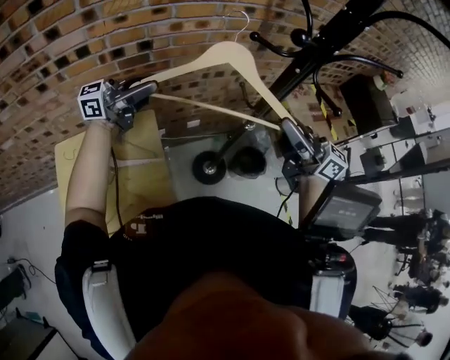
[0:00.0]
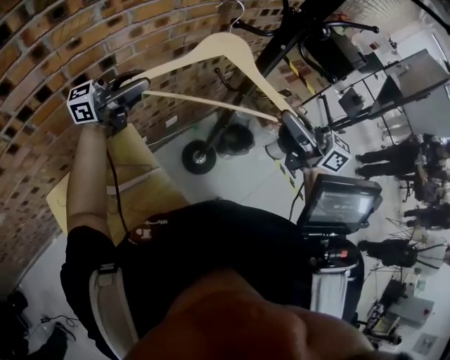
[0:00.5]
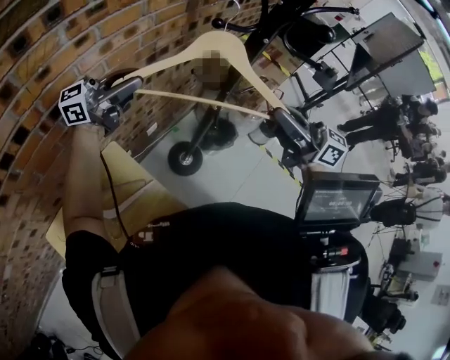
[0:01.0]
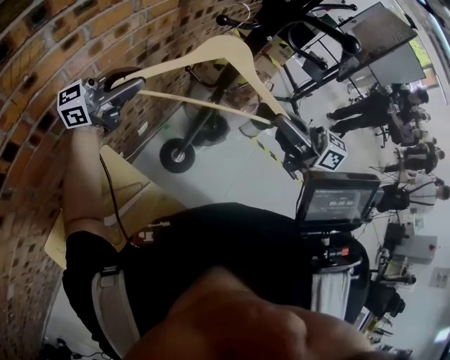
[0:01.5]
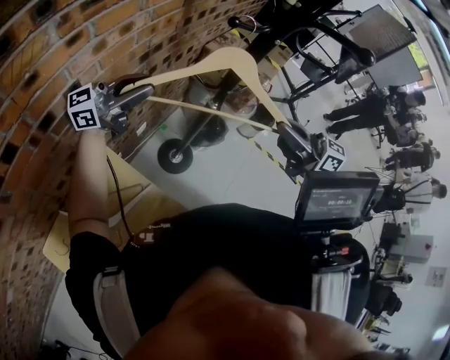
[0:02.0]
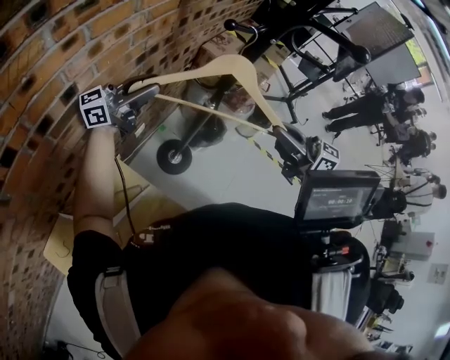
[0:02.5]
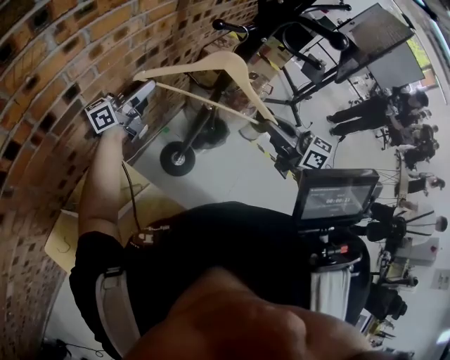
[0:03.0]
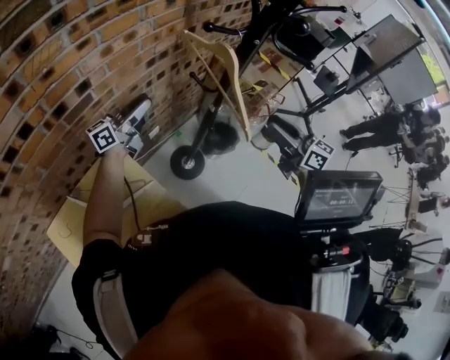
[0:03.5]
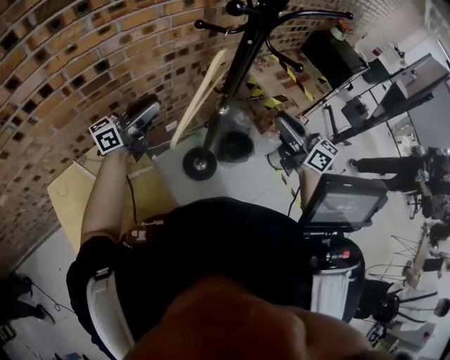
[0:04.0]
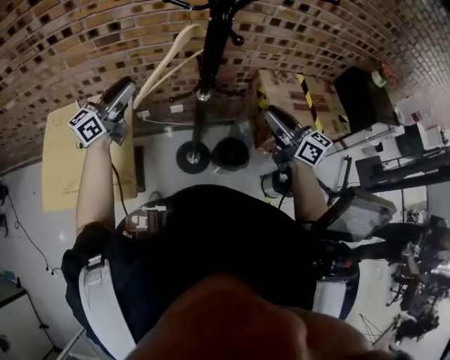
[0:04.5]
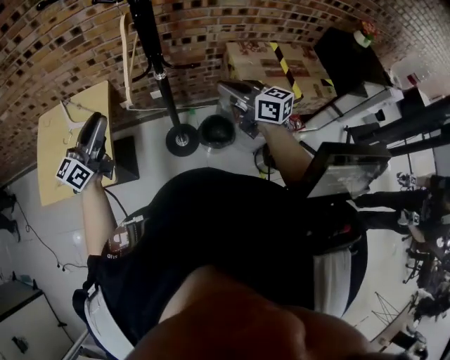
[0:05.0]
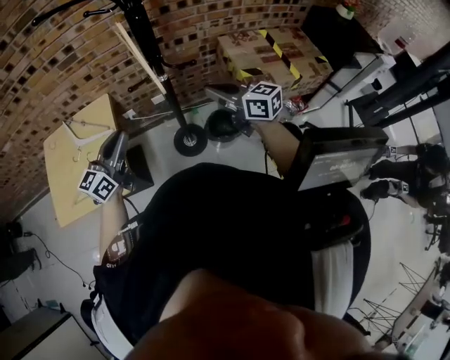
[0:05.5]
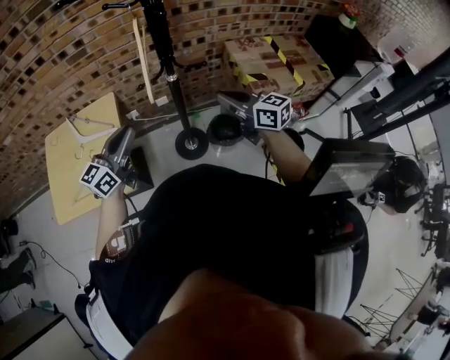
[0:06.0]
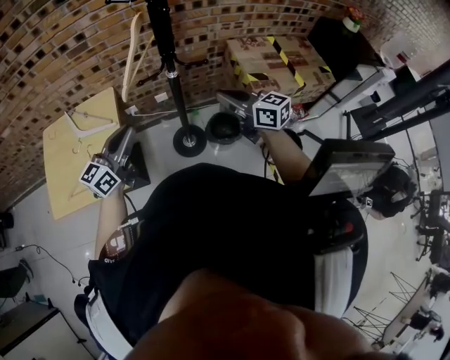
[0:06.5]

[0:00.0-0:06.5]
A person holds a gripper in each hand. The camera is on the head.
0:00.0 to 0:02.0: The right gripper changes place by roughly 5 cm, and rotates some 30 degrees. Meanwhile the left gripper ends up roughly 15 cm from where it was, and turns by approximately 30 degrees.
0:02.0 to 0:04.5: The right gripper ends up approximately 20 cm from where it was, and turns by roughly 30 degrees. The left gripper goes downward and returns, roughly 10 cm each way, and rotates roughly 70 degrees.
0:04.5 to 0:06.5: The right gripper goes about 10 cm backward and to the left, and closes. The left gripper is displaced backward by approximately 20 cm, and closes its fingers.

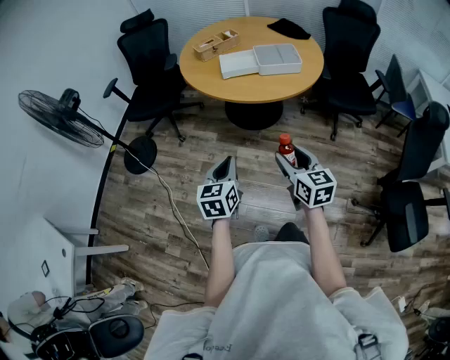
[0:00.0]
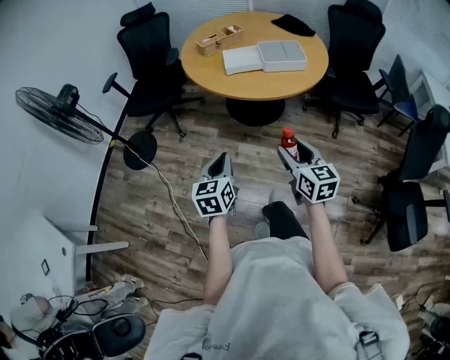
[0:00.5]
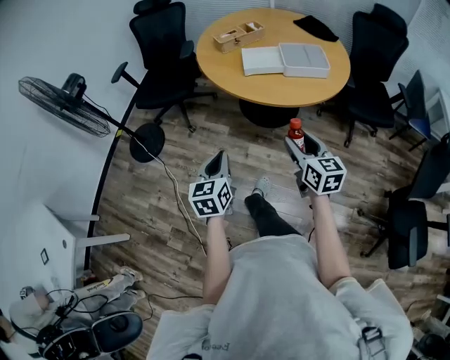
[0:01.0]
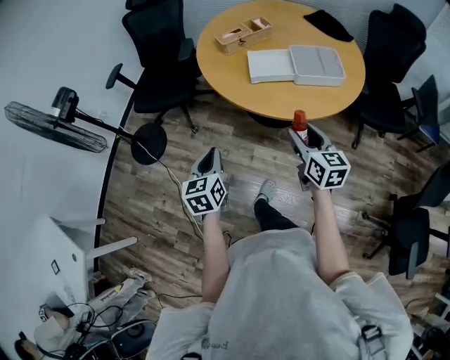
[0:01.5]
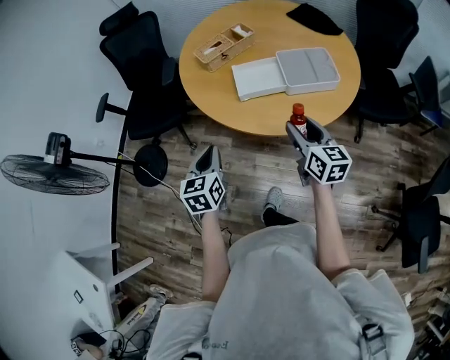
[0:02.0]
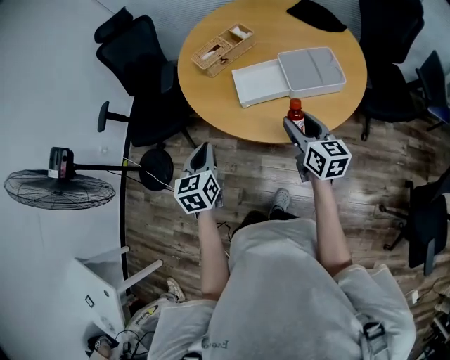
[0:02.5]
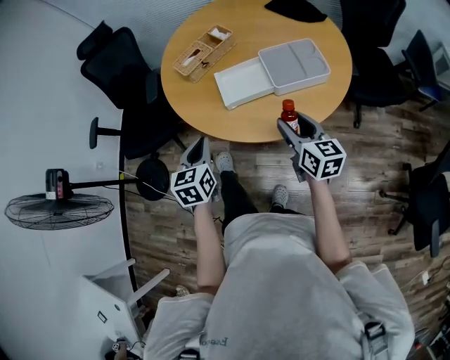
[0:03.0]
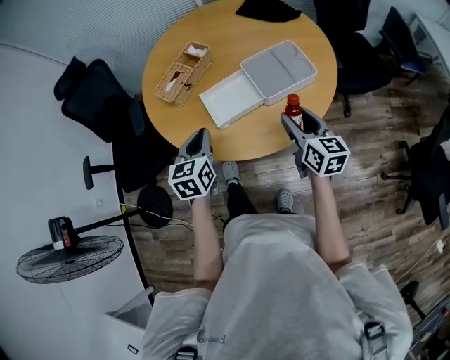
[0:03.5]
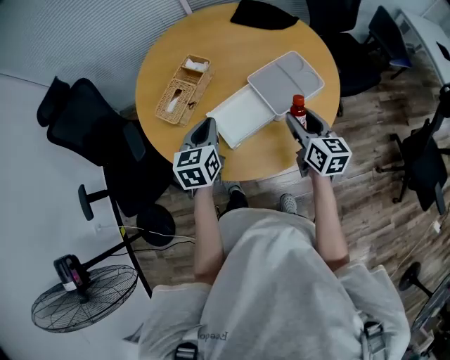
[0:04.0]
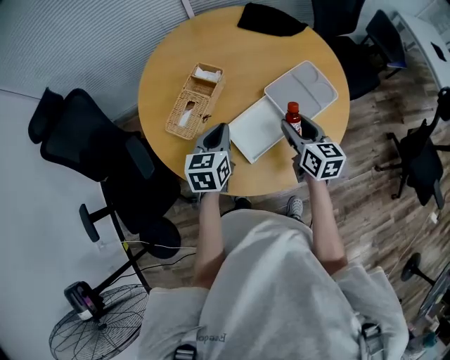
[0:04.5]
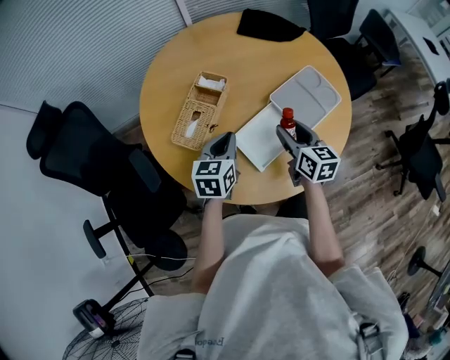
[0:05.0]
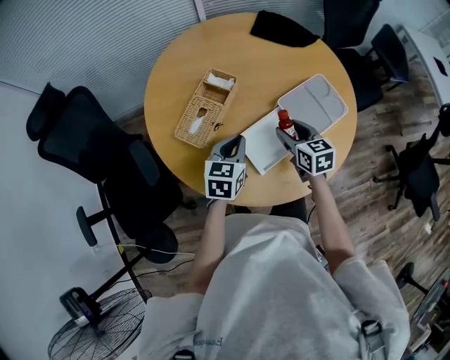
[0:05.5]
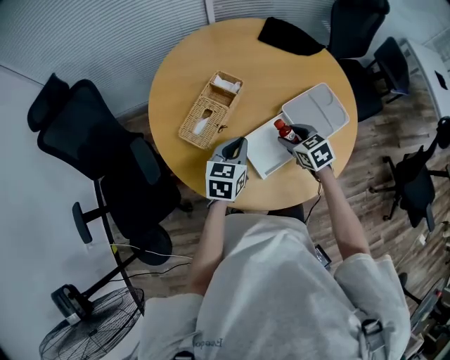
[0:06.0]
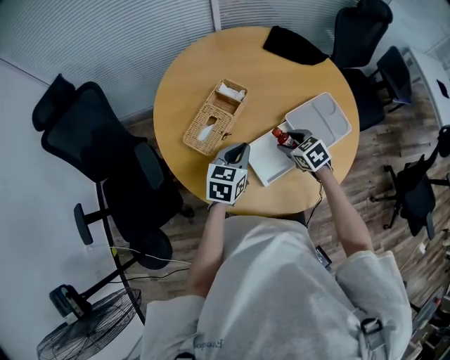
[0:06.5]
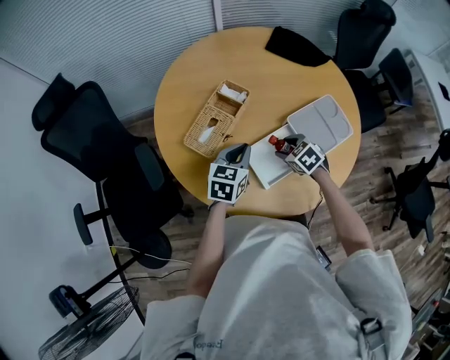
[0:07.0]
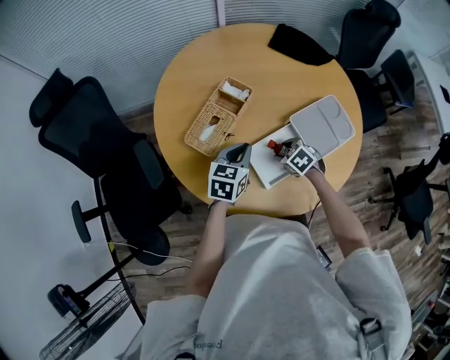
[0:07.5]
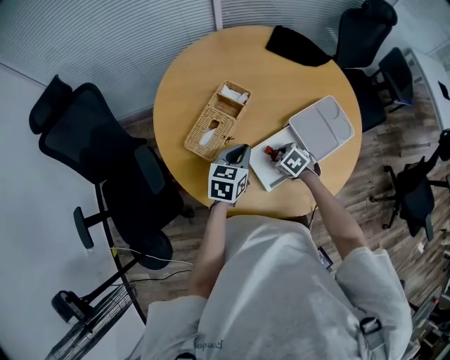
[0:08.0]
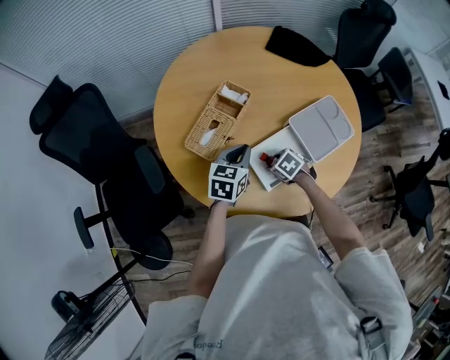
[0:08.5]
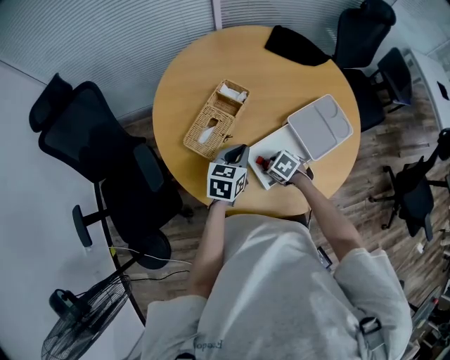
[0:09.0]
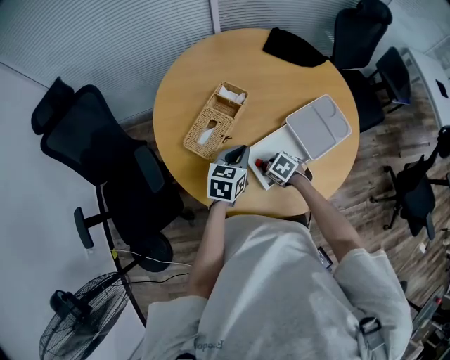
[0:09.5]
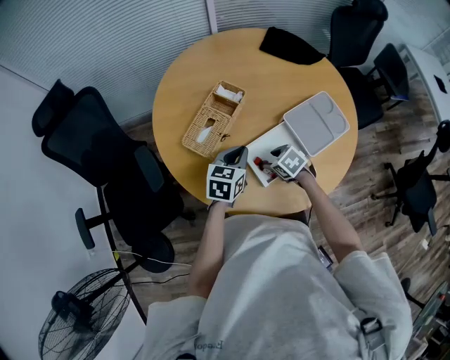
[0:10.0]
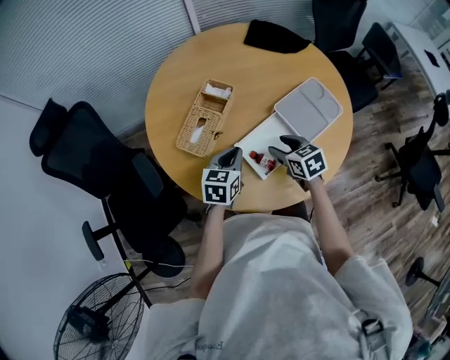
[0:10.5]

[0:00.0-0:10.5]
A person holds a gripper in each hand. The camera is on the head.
0:00.0 to 0:02.0: The two grippers go some 35 cm forward.
0:02.0 to 0:04.0: The left gripper changes place by some 30 cm, and rotates roughly 30 degrees. The right gripper moves about 15 cm, and changes its angle by about 30 degrees.
0:04.0 to 0:06.5: The right gripper is displaced to the left, downward and forward by approximately 20 cm, and angles its fingers downward, by about 30 degrees, while the left gripper is displaced downward and forward by some 10 cm.
0:06.5 to 0:08.5: The right gripper heads downward, covering some 10 cm, and rotates roughly 20 degrees.
0:08.5 to 0:10.5: The right gripper travels upward by roughly 10 cm, and swivels about 40 degrees.

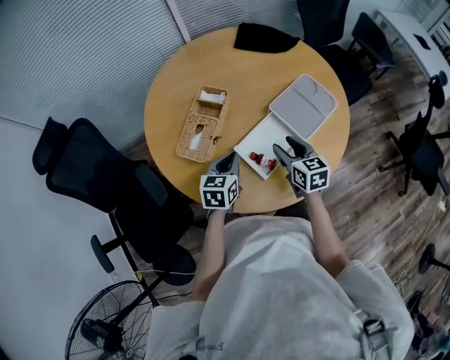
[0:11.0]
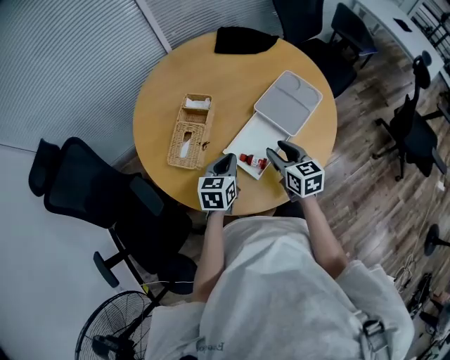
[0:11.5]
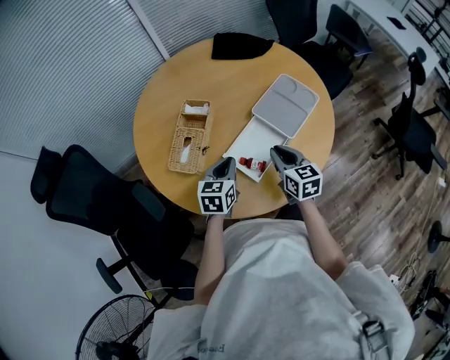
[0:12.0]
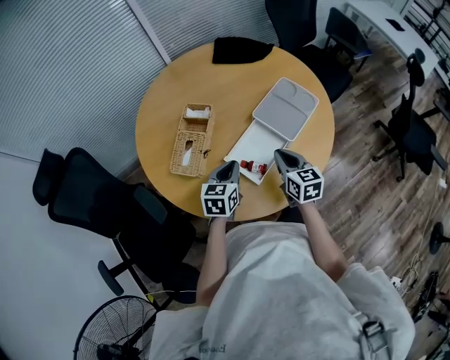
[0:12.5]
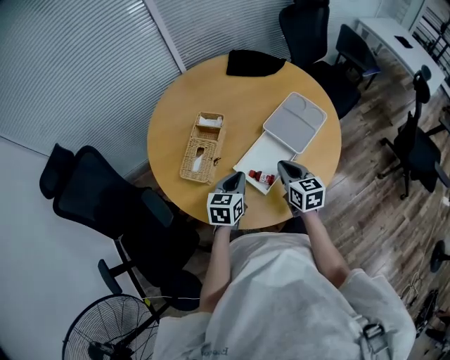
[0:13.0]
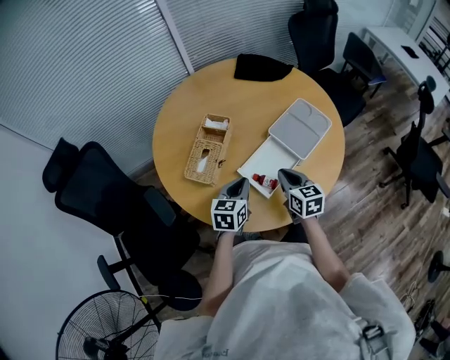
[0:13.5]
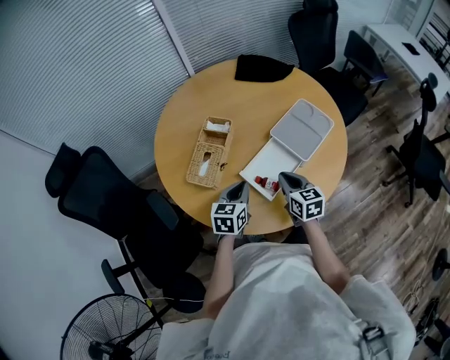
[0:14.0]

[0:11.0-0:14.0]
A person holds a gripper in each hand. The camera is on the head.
0:11.0 to 0:12.5: The right gripper closes its fingers.
0:12.5 to 0:14.0: The grippers make only small movements.

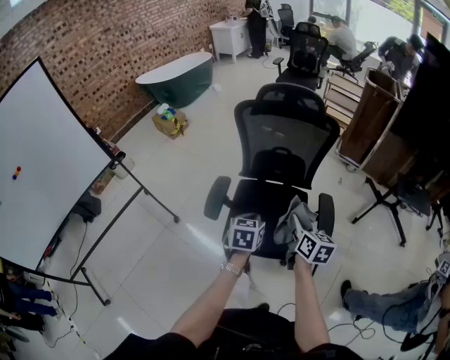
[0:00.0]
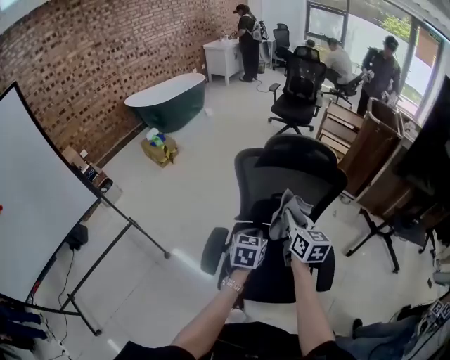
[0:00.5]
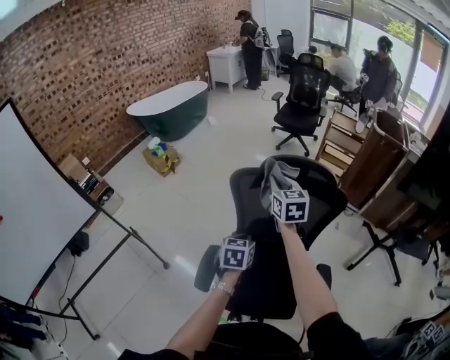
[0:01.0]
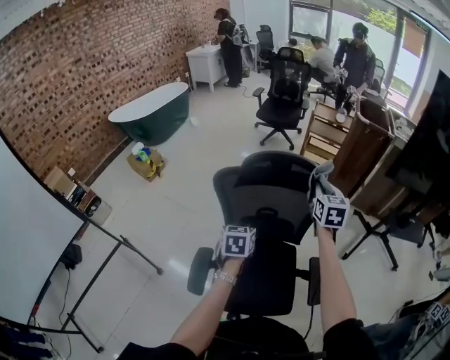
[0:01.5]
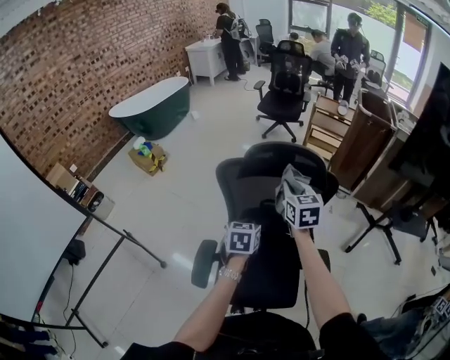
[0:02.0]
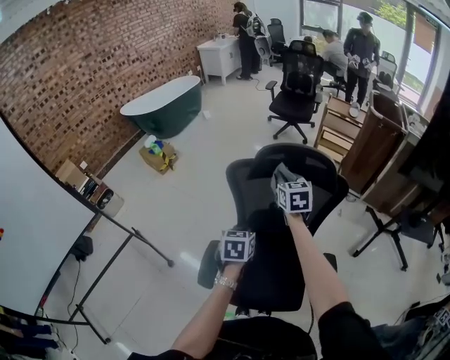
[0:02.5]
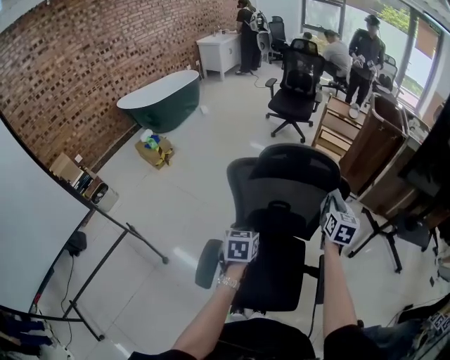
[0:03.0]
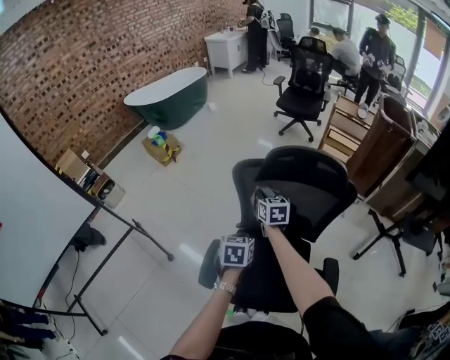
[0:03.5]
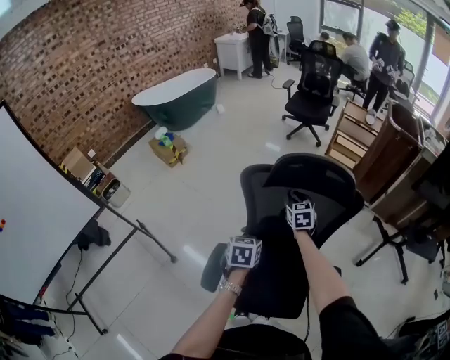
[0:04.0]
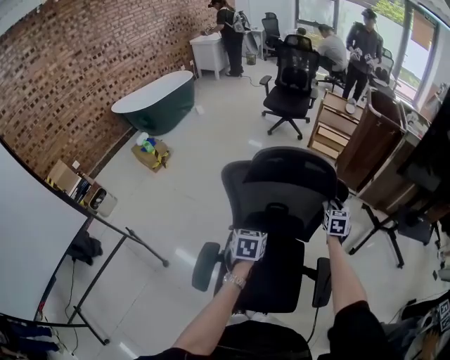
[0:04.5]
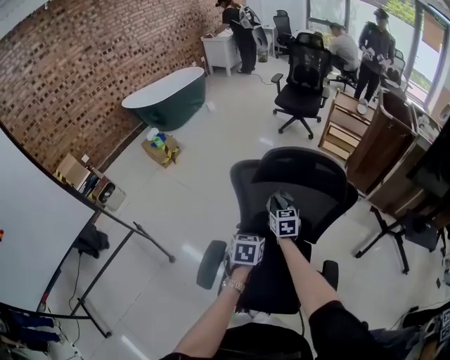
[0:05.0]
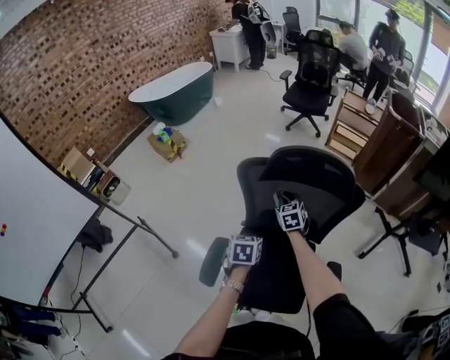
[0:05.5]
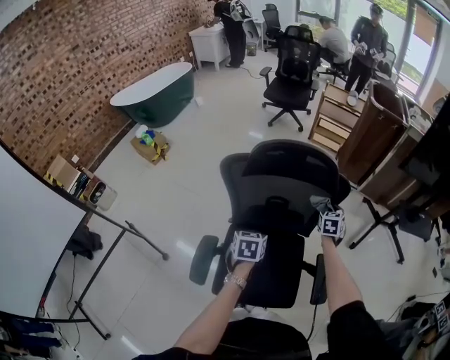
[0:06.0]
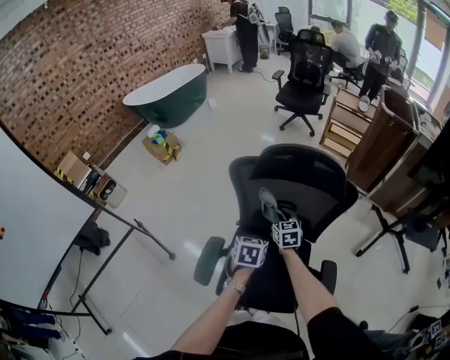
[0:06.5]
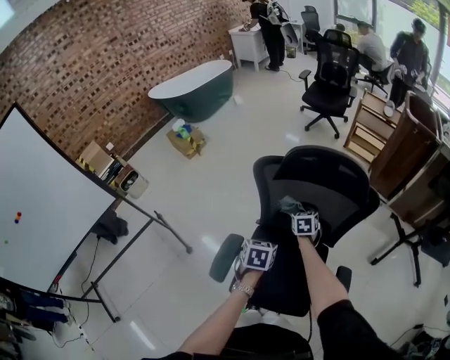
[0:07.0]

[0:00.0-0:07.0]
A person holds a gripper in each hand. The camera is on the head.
0:00.0 to 0:02.0: Both grippers travel together forward, approximately 30 cm. The right gripper rotates about 30 degrees.
0:02.0 to 0:03.5: The left gripper goes about 5 cm to the left; the right gripper moves to the right and downward, some 15 cm.
0:03.5 to 0:05.0: The left gripper shifts approximately 5 cm to the right; the right gripper shifts approximately 20 cm to the left, and changes its angle by approximately 20 degrees.
0:05.0 to 0:07.0: The right gripper shifts about 10 cm downward, and moves some 30 cm to the right and comes back.
